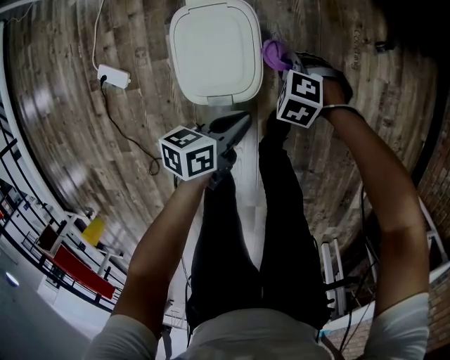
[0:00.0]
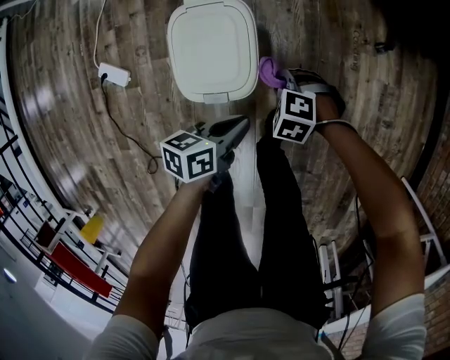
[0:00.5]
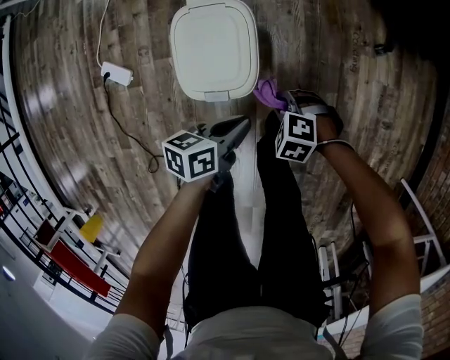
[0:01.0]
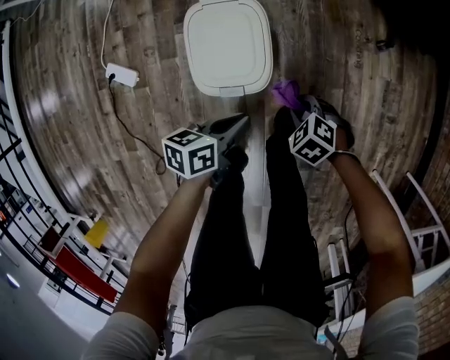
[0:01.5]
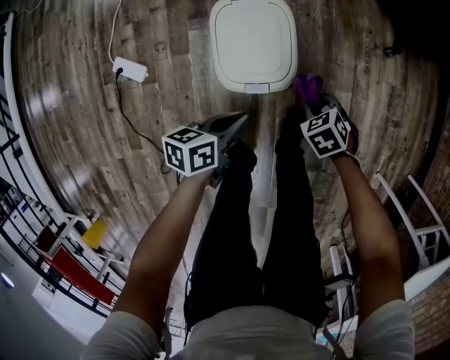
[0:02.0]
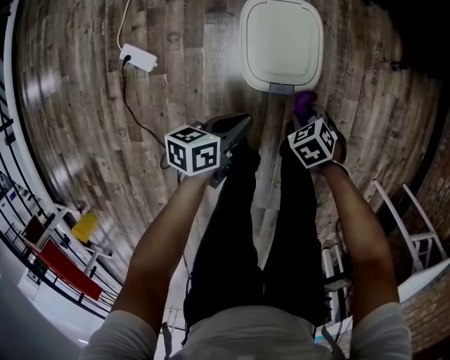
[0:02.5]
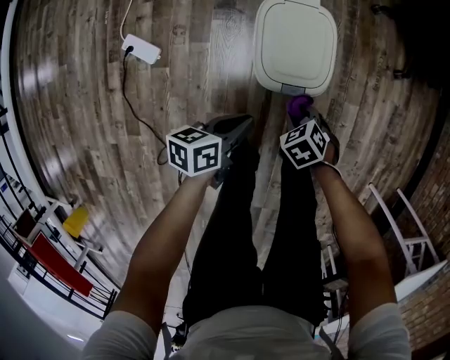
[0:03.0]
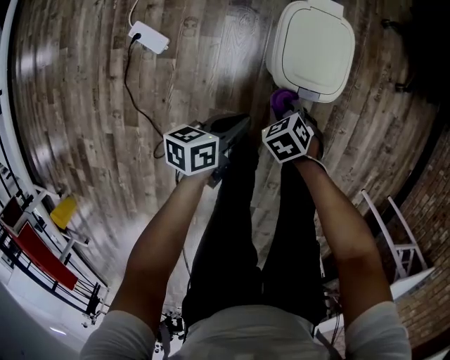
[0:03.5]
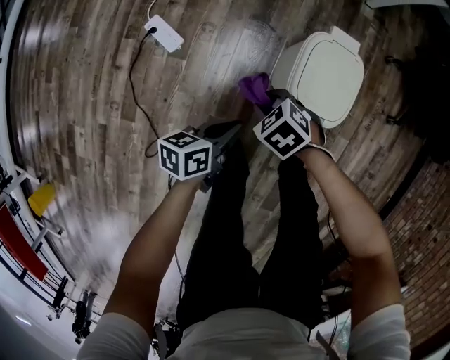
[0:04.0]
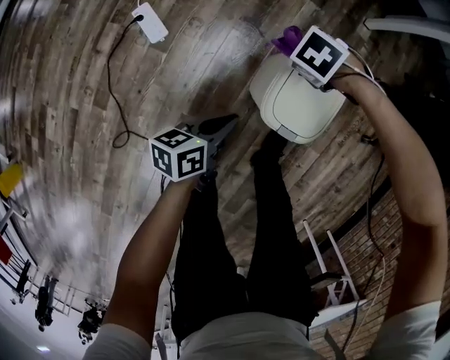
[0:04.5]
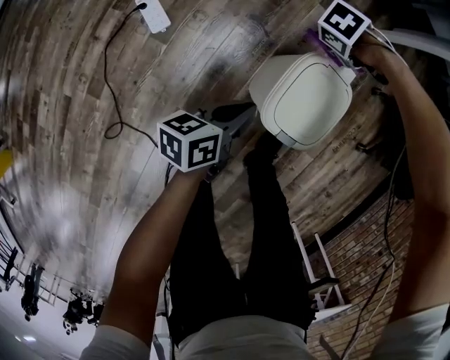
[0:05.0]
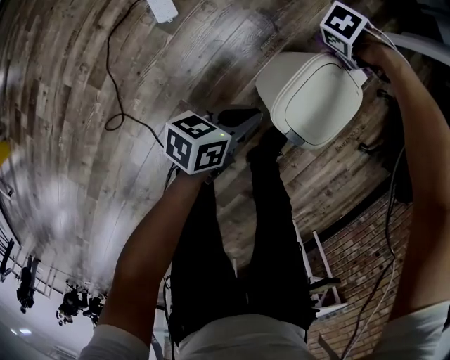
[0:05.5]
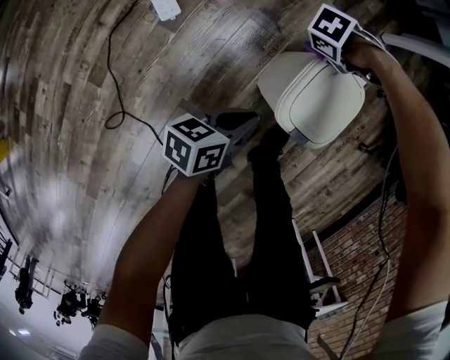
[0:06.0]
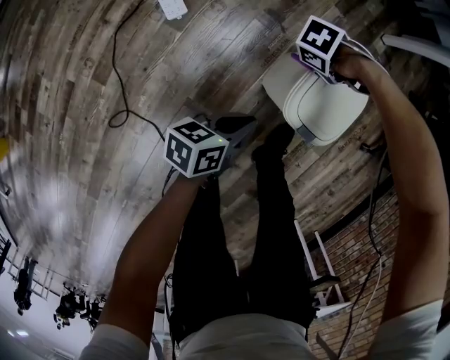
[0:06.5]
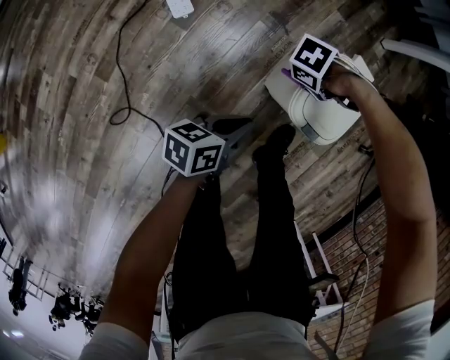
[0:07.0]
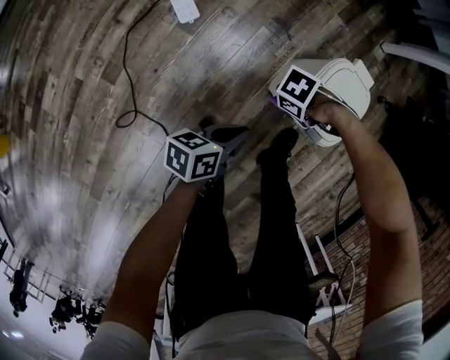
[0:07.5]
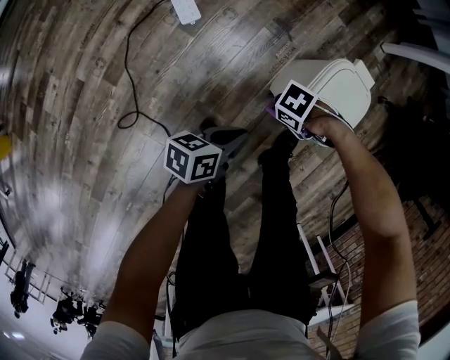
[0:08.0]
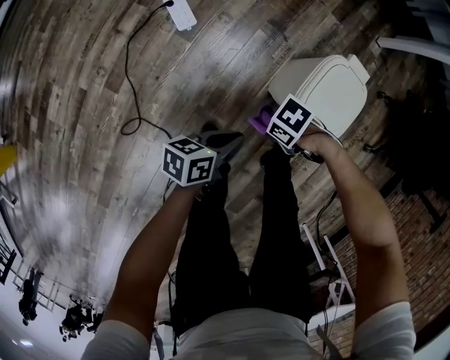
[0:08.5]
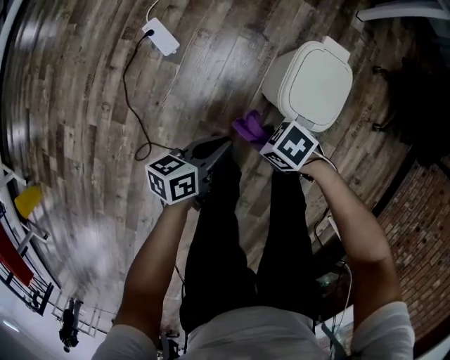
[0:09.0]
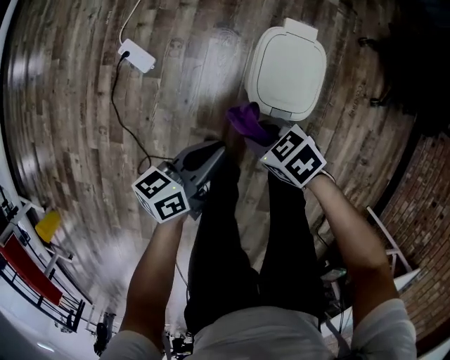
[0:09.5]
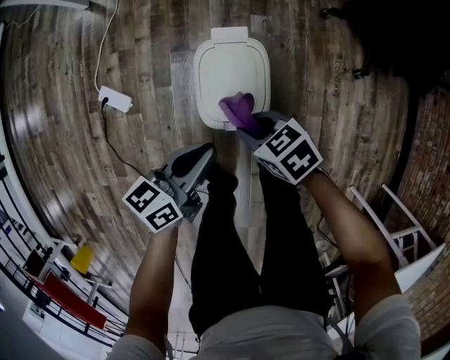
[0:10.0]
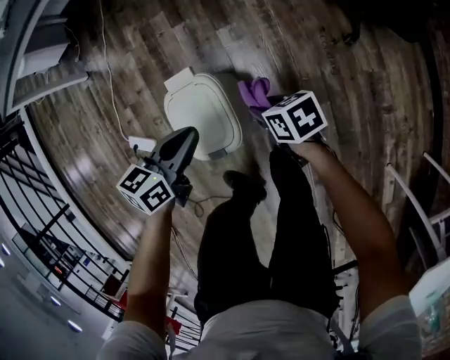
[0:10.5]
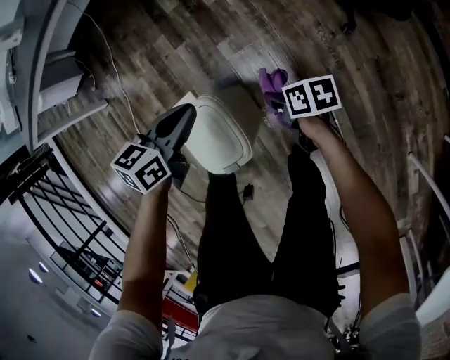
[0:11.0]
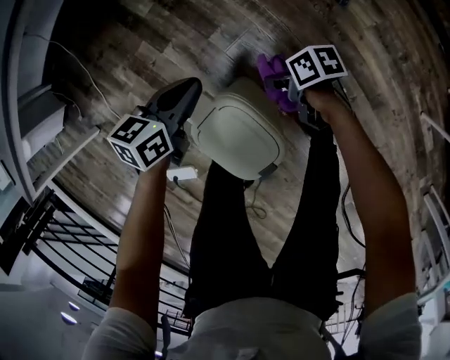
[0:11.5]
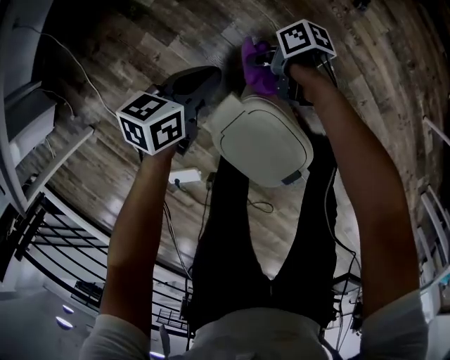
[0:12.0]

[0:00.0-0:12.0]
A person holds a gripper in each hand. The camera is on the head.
0:00.0 to 0:02.0: The left gripper shifts by about 10 cm.
0:02.0 to 0:04.0: The left gripper changes place by about 20 cm.
0:06.0 to 0:08.0: The left gripper moves some 10 cm.
0:08.0 to 0:10.0: The left gripper shifts by approximately 25 cm, and changes its angle by some 30 degrees.
0:10.0 to 0:12.0: The left gripper shifts by about 40 cm, and rotates about 60 degrees.

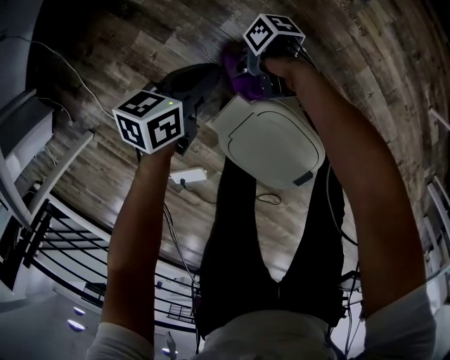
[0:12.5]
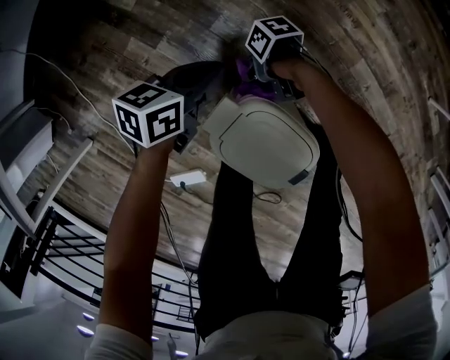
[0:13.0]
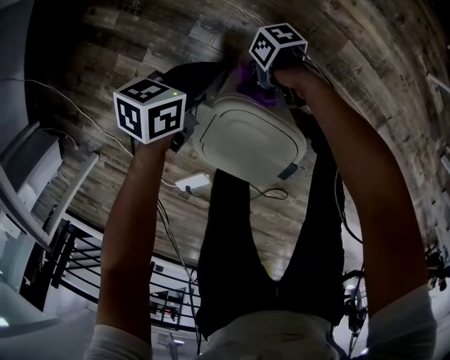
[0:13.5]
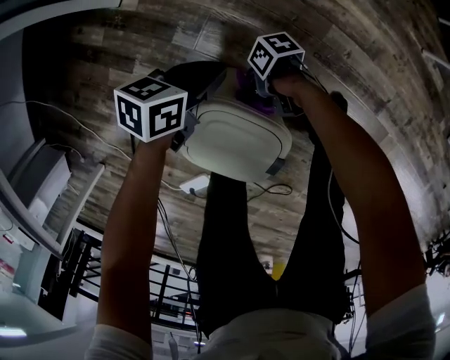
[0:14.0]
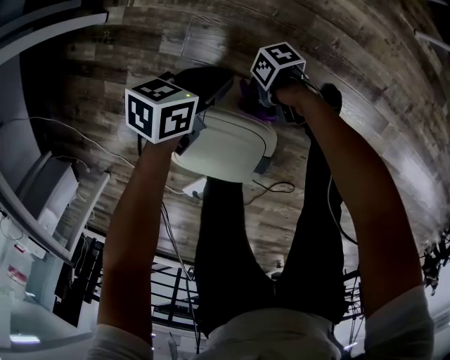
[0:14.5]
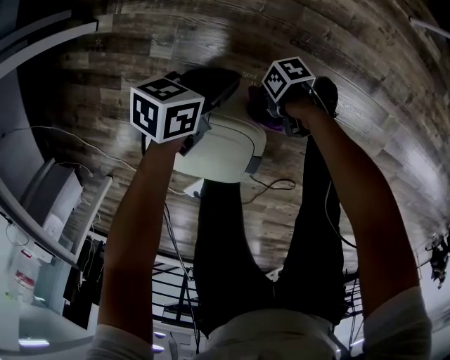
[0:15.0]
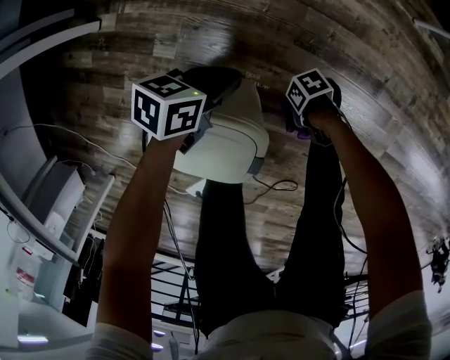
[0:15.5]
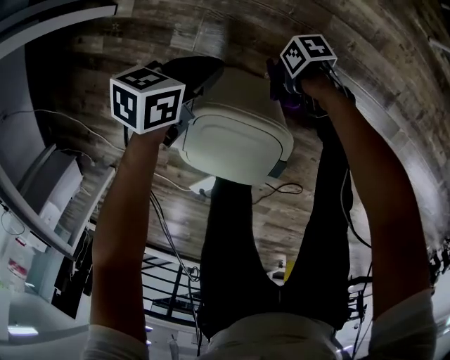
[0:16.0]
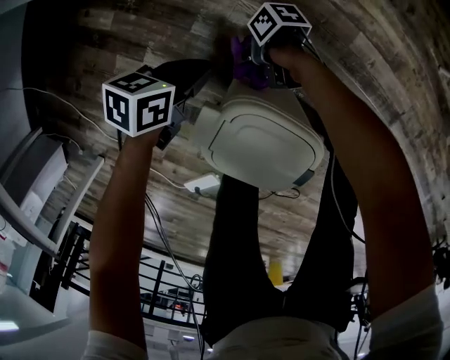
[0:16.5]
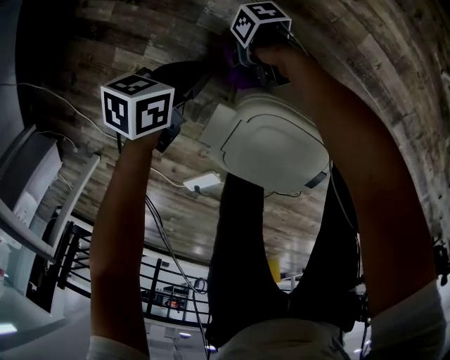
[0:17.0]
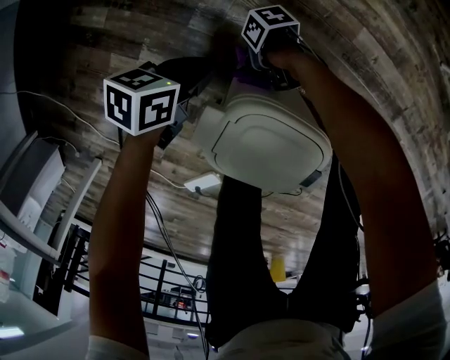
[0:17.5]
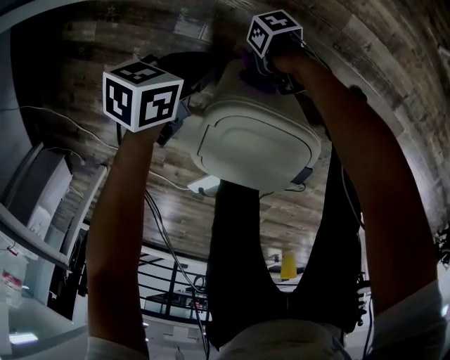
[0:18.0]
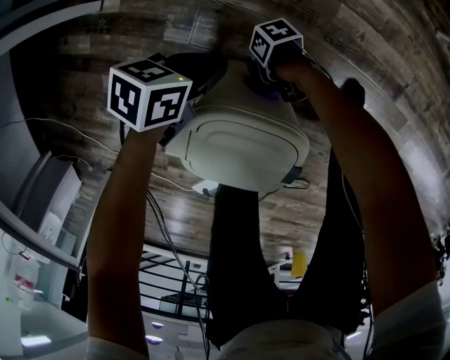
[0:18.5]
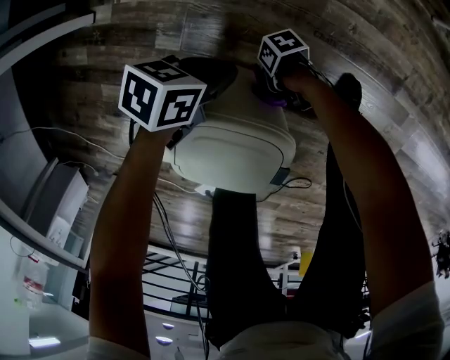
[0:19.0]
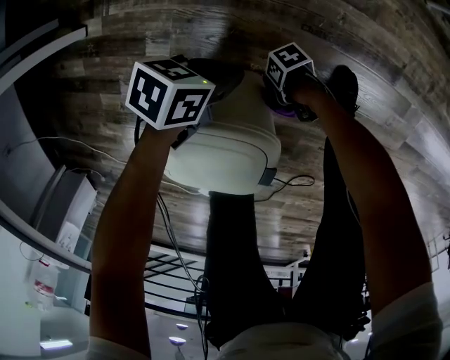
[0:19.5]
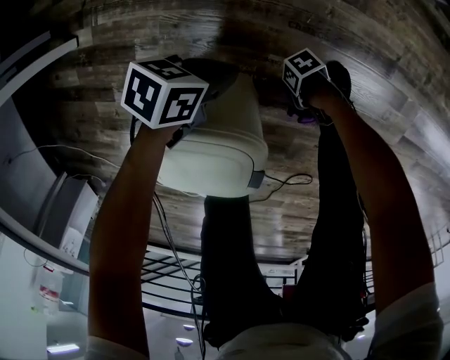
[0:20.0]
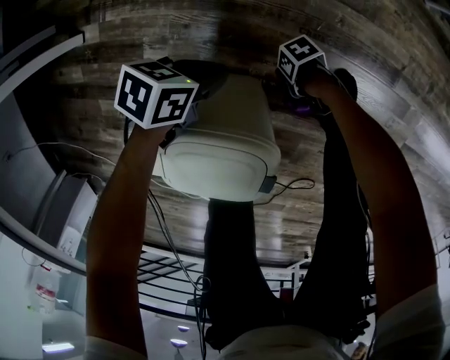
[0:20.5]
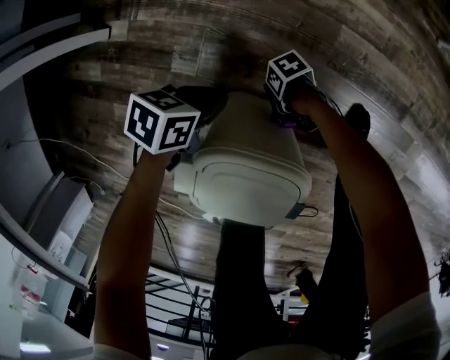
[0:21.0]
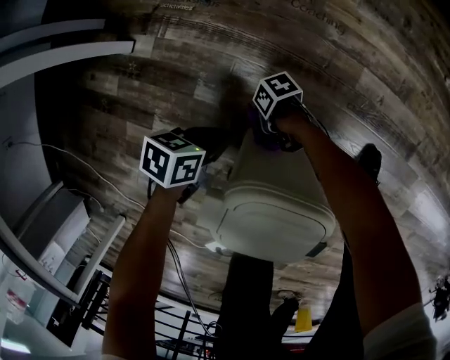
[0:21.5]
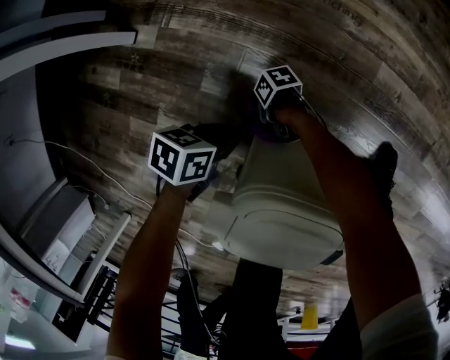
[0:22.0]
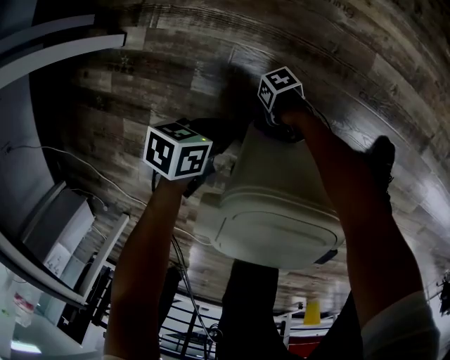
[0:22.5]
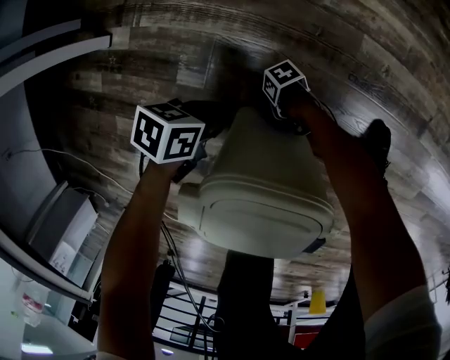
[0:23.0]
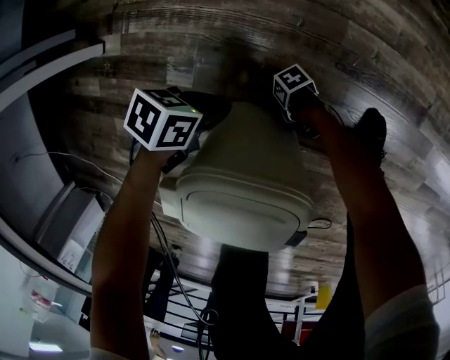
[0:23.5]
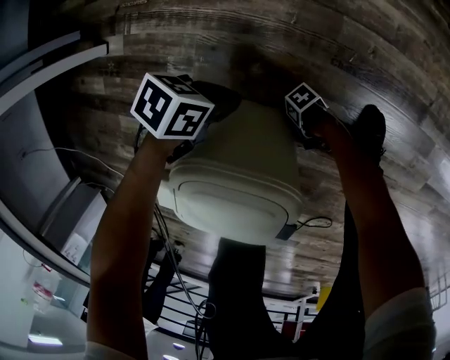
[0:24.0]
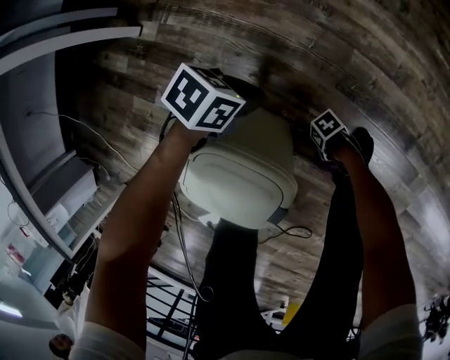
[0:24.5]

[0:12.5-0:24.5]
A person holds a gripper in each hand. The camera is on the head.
0:12.5 to 0:14.5: The left gripper shifts by approximately 25 cm, and turns by approximately 30 degrees.
0:14.5 to 0:16.5: The left gripper ends up about 20 cm from where it was.
0:16.5 to 0:18.5: The left gripper moves roughly 10 cm.
0:18.5 to 0:20.5: The left gripper ends up roughly 10 cm from where it was.
0:20.5 to 0:22.5: The left gripper changes place by approximately 20 cm.
0:22.5 to 0:24.5: The left gripper ends up approximately 20 cm from where it was.

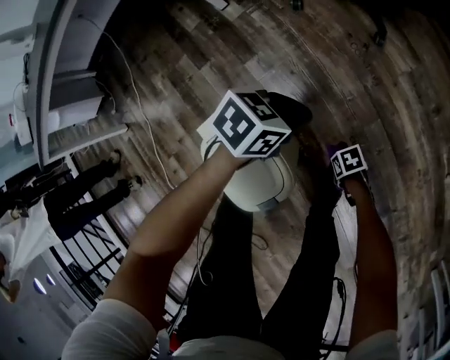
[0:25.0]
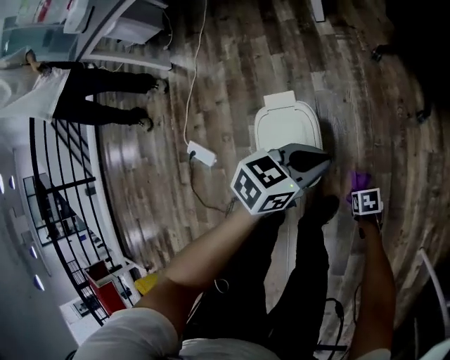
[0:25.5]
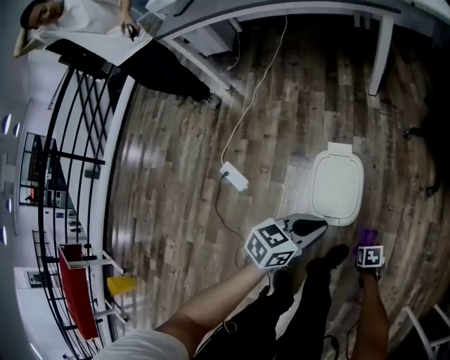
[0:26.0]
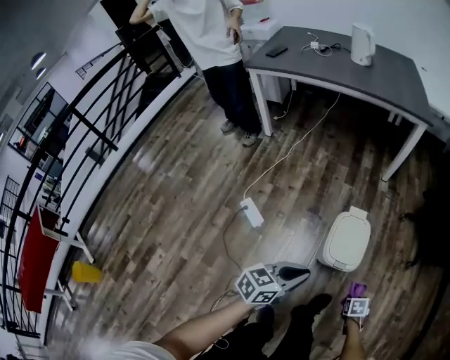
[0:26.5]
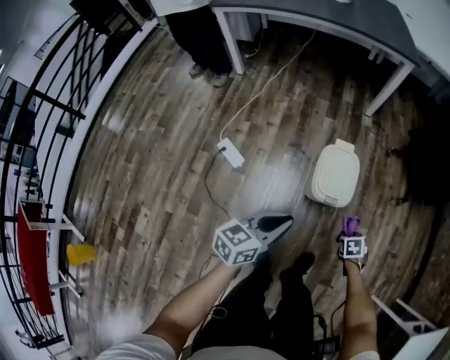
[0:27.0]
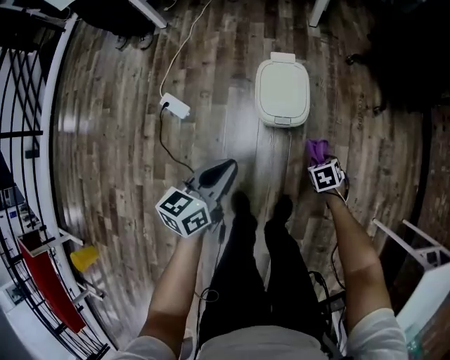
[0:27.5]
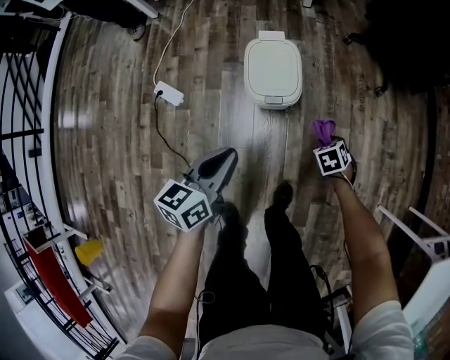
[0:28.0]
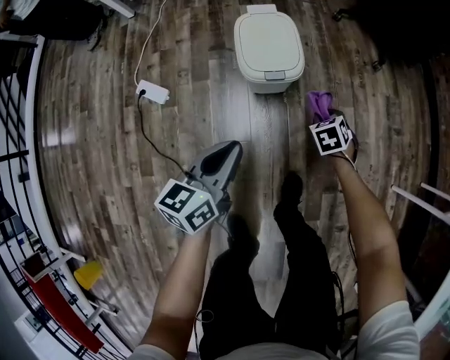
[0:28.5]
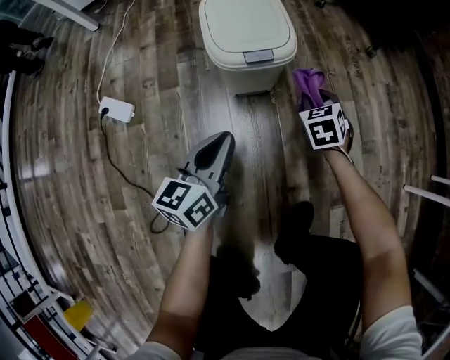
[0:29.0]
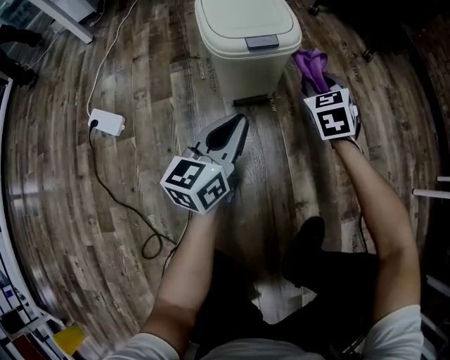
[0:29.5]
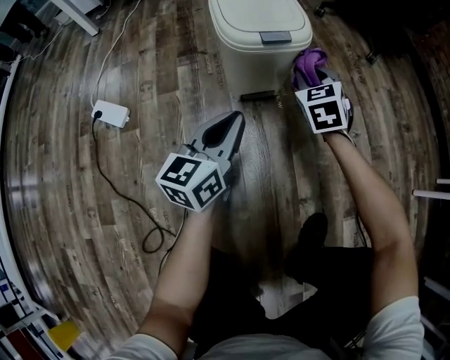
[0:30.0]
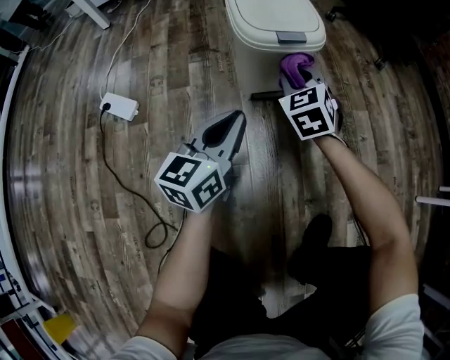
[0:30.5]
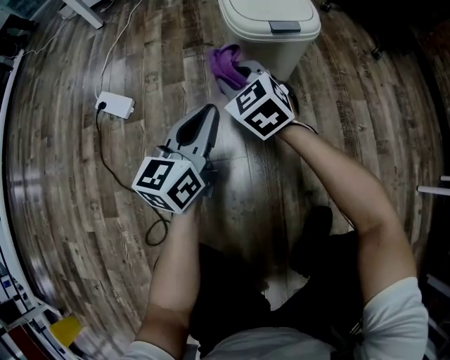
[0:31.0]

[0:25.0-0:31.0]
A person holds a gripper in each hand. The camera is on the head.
0:25.0 to 0:27.0: The left gripper ends up approximately 60 cm from where it was, and swivels about 80 degrees.
0:27.0 to 0:29.0: The left gripper heads downward, covering some 35 cm.
0:29.0 to 0:31.0: The left gripper ends up some 10 cm from where it was.
